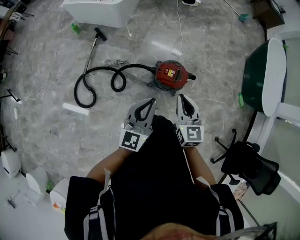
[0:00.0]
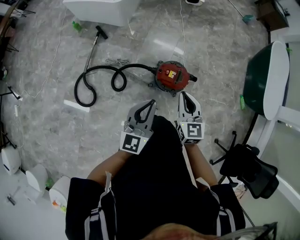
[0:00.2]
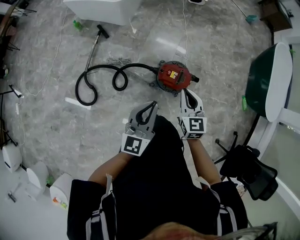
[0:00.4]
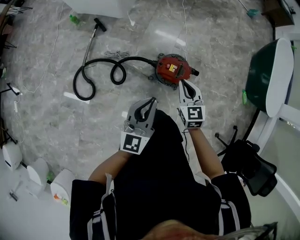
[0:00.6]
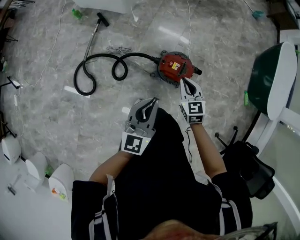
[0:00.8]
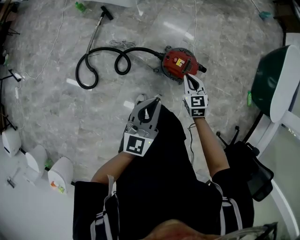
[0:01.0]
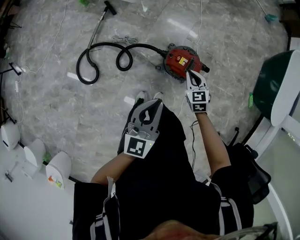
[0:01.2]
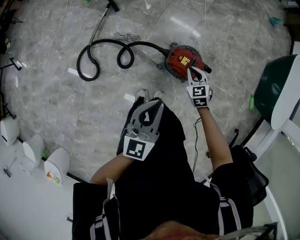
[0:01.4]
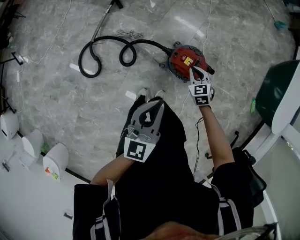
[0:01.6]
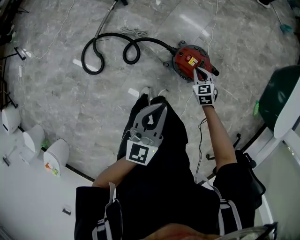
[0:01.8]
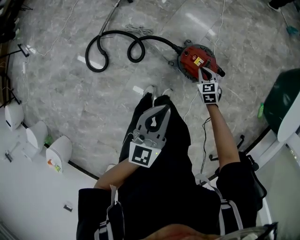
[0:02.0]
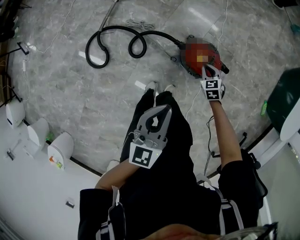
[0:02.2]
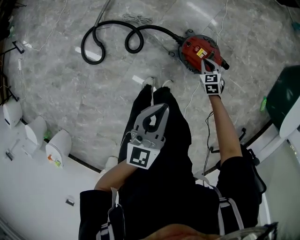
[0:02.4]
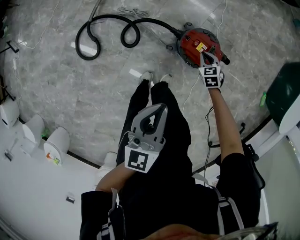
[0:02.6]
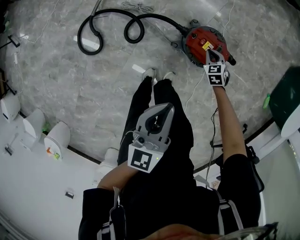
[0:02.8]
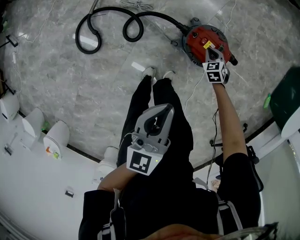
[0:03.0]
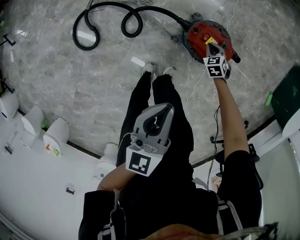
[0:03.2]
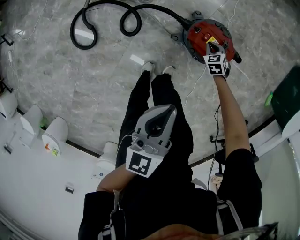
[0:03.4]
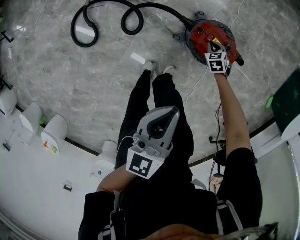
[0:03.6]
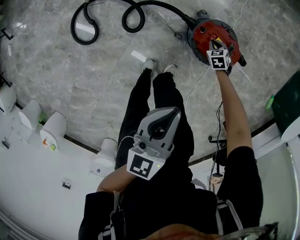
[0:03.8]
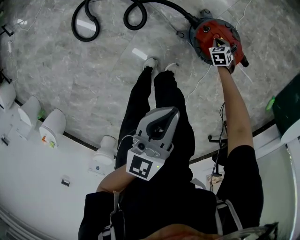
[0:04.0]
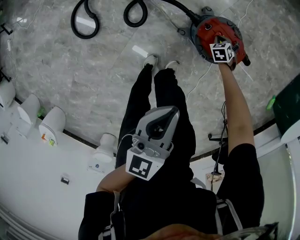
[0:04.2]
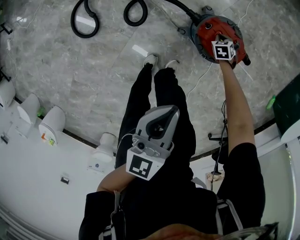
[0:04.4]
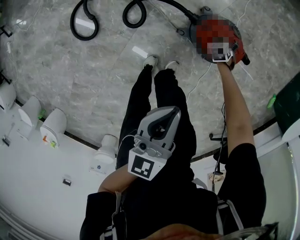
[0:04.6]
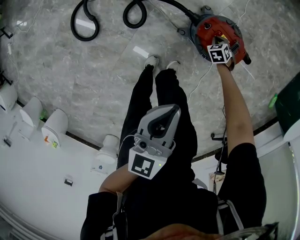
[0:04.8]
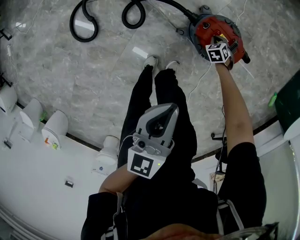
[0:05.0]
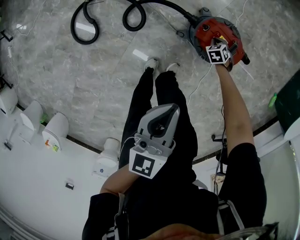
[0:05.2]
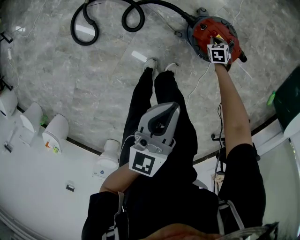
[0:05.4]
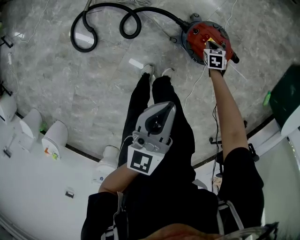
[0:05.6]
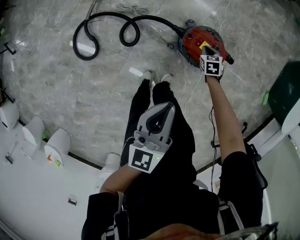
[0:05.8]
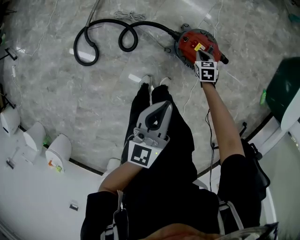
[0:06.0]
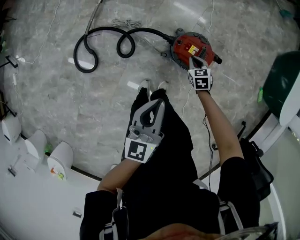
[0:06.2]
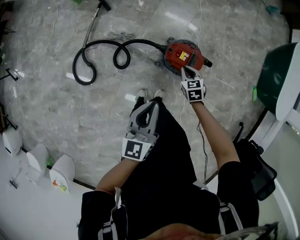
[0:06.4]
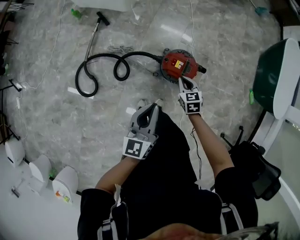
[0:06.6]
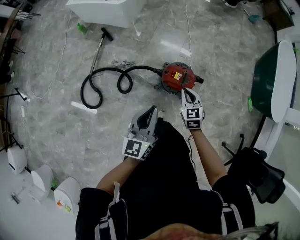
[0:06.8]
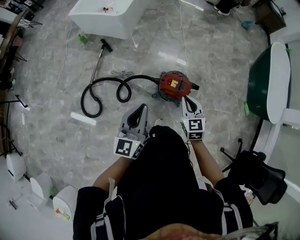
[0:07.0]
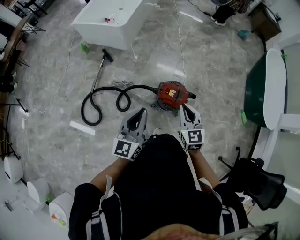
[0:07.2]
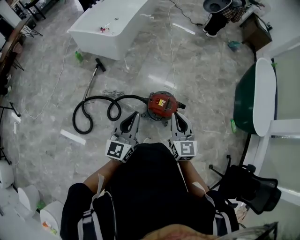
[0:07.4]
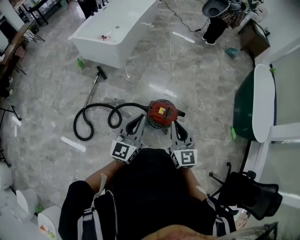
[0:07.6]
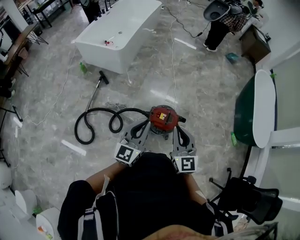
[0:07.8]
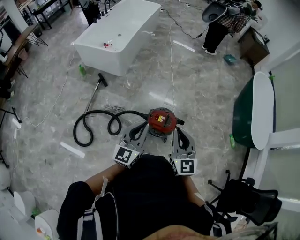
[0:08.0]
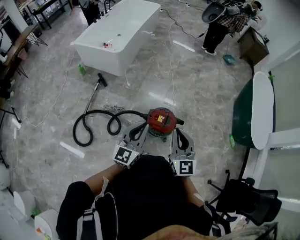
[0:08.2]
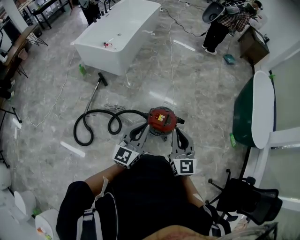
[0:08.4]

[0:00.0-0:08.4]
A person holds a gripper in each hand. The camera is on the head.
0:00.0 to 0:01.4: The right gripper goes about 25 cm downward and forward, and rotates approximately 30 degrees, while the left gripper moves roughly 5 cm.
0:01.4 to 0:02.8: The left gripper moves downward, roughly 10 cm; the right gripper is displaced downward by about 20 cm.
0:02.8 to 0:04.2: The right gripper moves downward, about 20 cm. Meanwhile the left gripper moves downward, some 5 cm.
0:04.2 to 0:05.6: The right gripper shifts roughly 10 cm upward, and rotates roughly 20 degrees.
0:05.6 to 0:07.0: The right gripper is displaced upward by some 50 cm, and tilts its fingers some 40 degrees upward, while the left gripper shifts roughly 20 cm upward.
0:07.0 to 0:08.4: The left gripper moves to the right, some 5 cm; the right gripper moves upward, about 15 cm, and changes its angle by some 30 degrees.

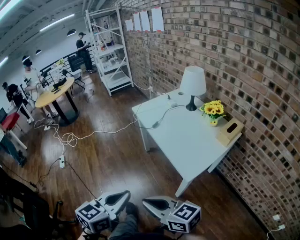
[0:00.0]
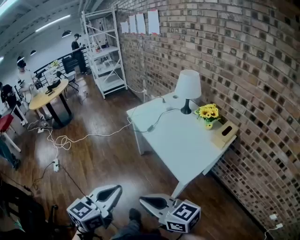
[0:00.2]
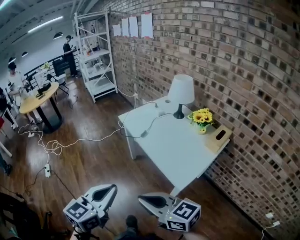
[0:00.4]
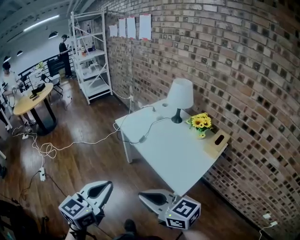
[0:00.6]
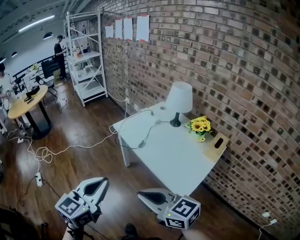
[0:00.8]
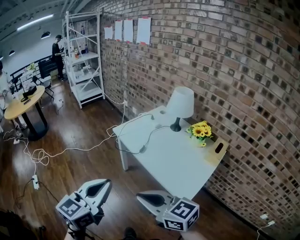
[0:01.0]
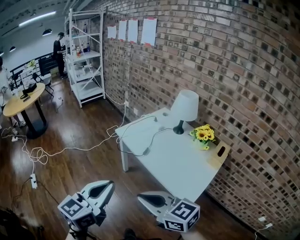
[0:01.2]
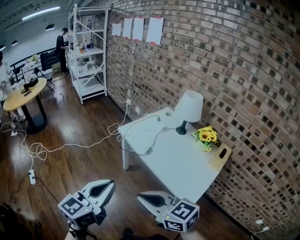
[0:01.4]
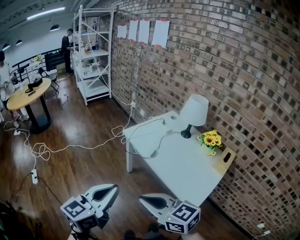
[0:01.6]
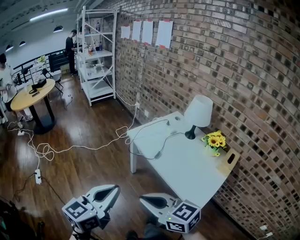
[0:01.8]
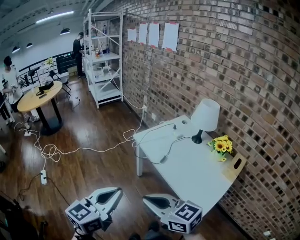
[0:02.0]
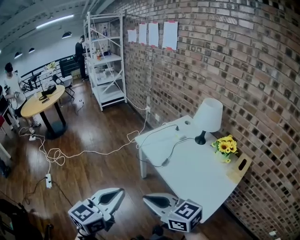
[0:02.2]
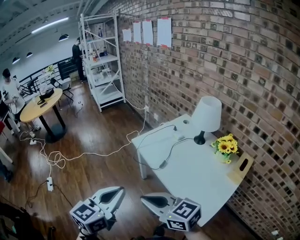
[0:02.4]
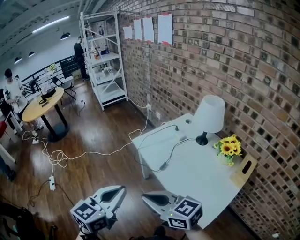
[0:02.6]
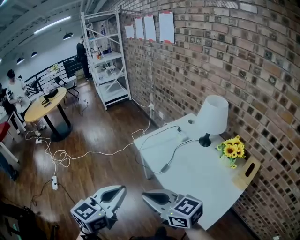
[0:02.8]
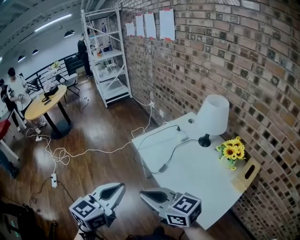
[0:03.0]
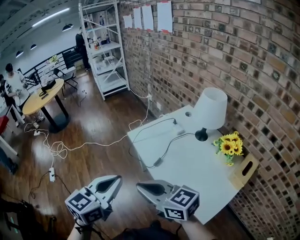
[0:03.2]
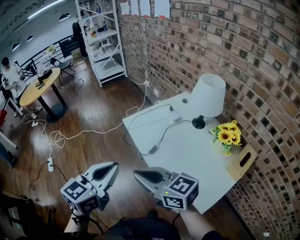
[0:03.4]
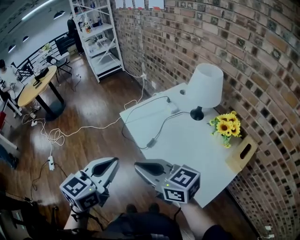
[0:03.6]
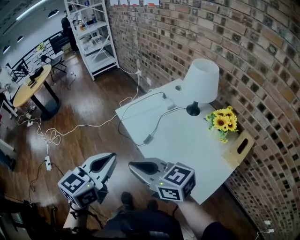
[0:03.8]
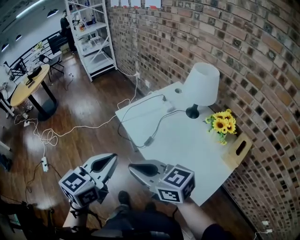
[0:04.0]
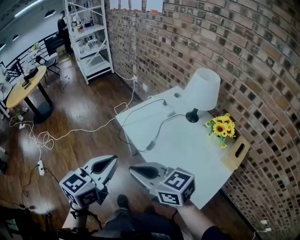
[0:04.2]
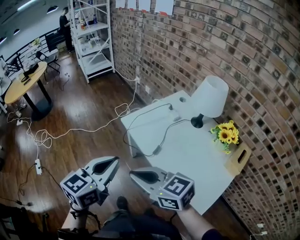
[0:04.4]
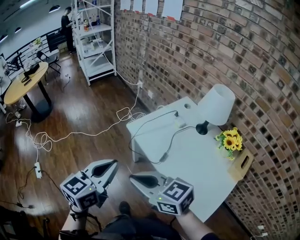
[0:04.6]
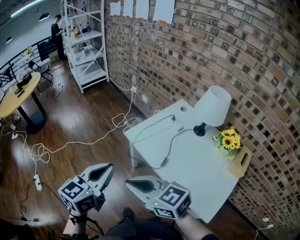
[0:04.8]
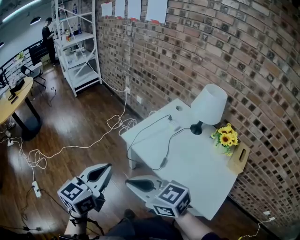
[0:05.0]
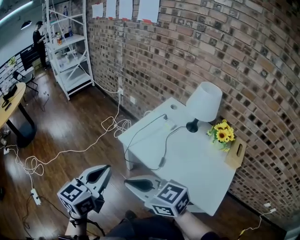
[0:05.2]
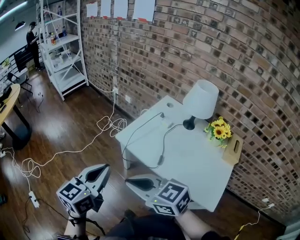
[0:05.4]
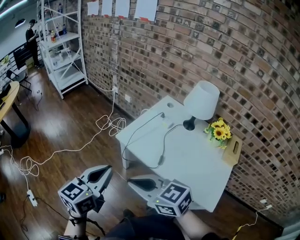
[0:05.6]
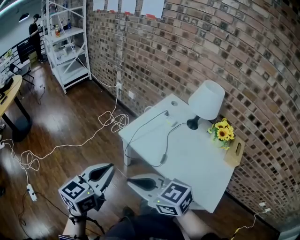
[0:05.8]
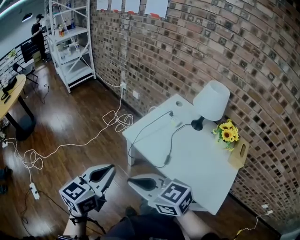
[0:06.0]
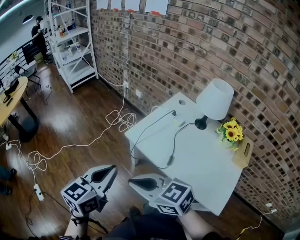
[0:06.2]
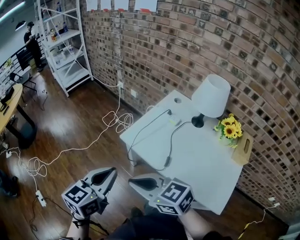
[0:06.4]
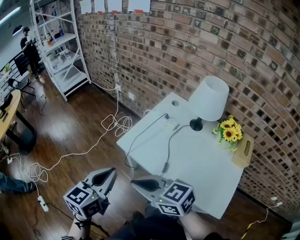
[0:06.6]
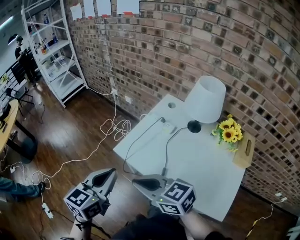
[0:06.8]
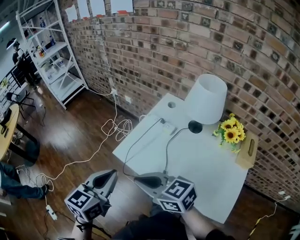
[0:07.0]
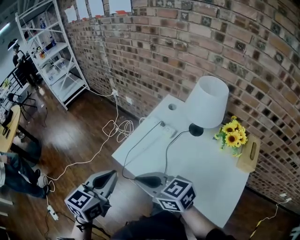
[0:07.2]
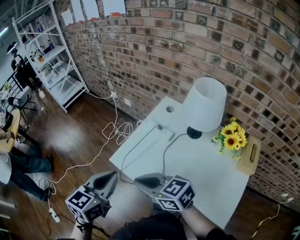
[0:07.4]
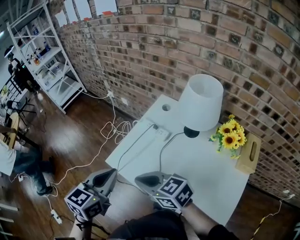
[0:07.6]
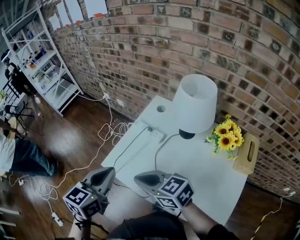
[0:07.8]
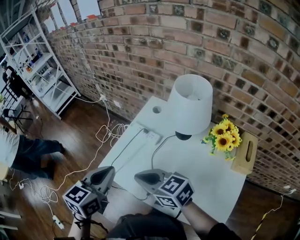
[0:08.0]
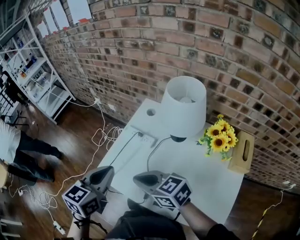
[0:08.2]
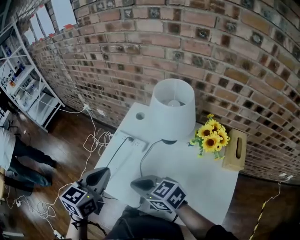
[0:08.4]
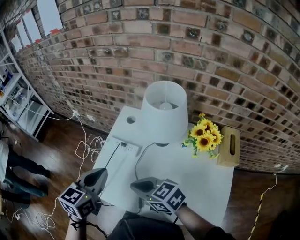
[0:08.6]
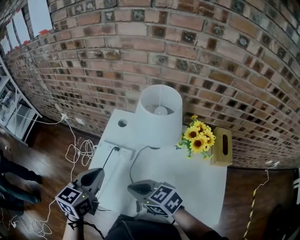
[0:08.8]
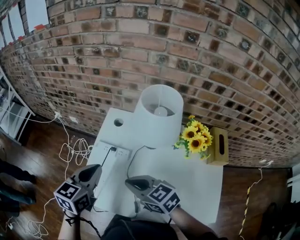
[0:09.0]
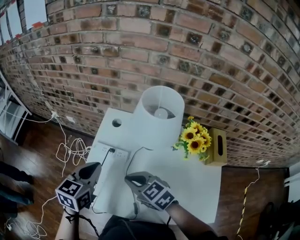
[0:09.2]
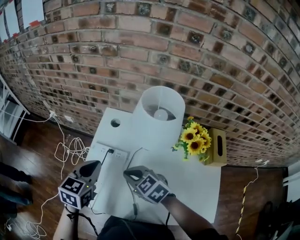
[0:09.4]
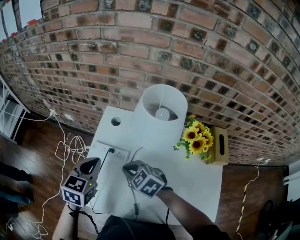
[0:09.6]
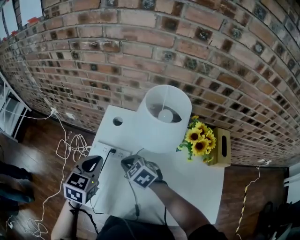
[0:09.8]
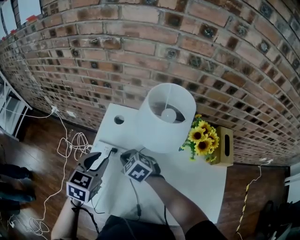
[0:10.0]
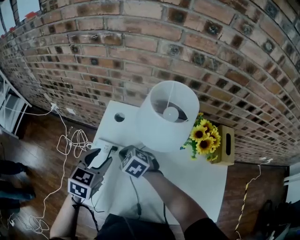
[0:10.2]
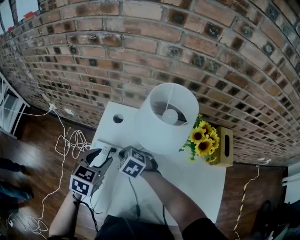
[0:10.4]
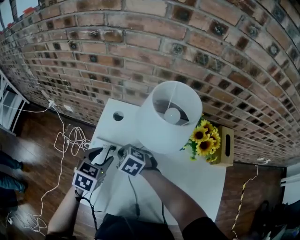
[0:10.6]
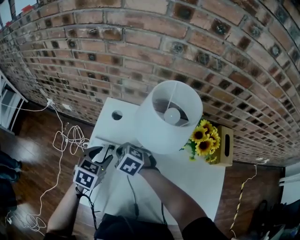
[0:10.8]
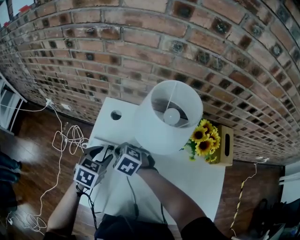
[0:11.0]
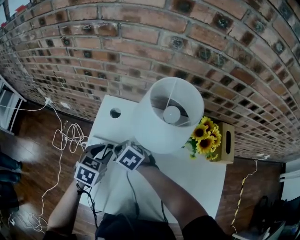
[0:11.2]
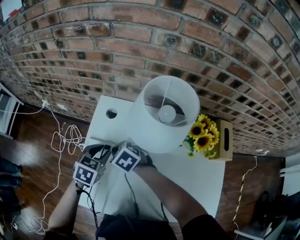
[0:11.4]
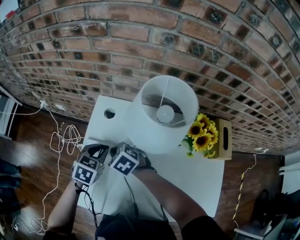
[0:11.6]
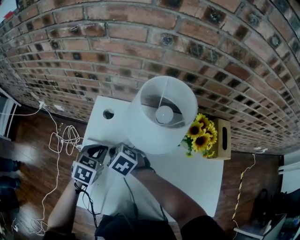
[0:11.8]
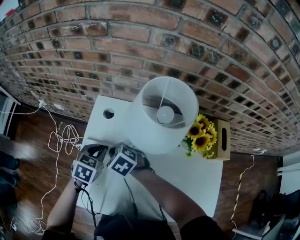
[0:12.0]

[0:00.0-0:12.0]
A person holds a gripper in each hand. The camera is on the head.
0:00.0 to 0:01.6: The grippers both shift forward and to the left by roughly 25 cm.
0:01.6 to 0:03.0: Both grippers move forward and to the right, some 15 cm.
0:03.0 to 0:04.4: The left gripper shifts approximately 5 cm forward; the right gripper changes place by approximately 5 cm.
0:04.4 to 0:06.0: Both grippers move to the left and forward, about 15 cm.
0:06.0 to 0:07.6: The grippers both shift to the right and forward by roughly 20 cm.
0:07.6 to 0:09.0: The left gripper heads forward and to the right, covering some 20 cm, and turns by roughly 20 degrees. The right gripper goes some 15 cm to the right and forward, and turns by approximately 30 degrees.
0:09.0 to 0:10.4: The left gripper travels downward and forward by roughly 10 cm, and opens up, while the right gripper is displaced forward and downward by about 20 cm, and turns by some 40 degrees.
0:10.4 to 0:12.0: The left gripper travels downward by roughly 5 cm, and closes up.

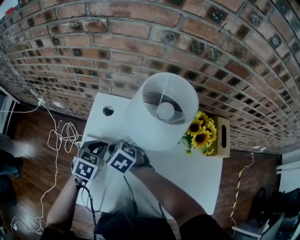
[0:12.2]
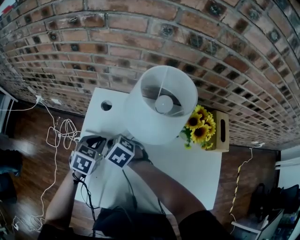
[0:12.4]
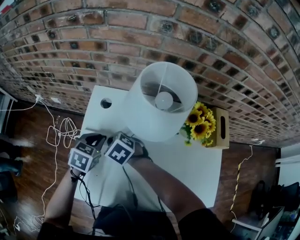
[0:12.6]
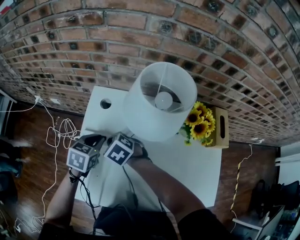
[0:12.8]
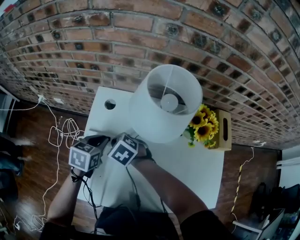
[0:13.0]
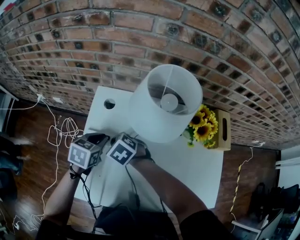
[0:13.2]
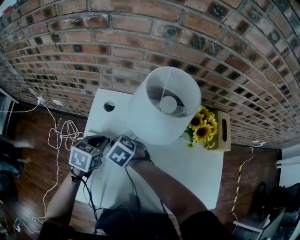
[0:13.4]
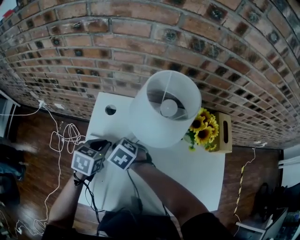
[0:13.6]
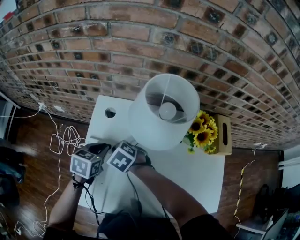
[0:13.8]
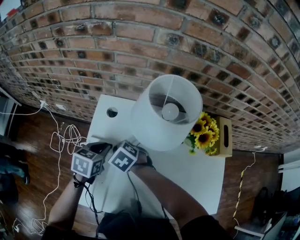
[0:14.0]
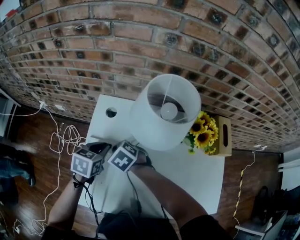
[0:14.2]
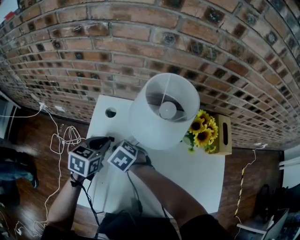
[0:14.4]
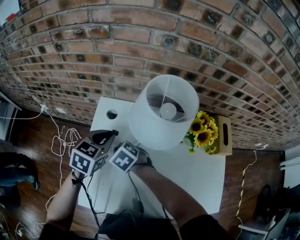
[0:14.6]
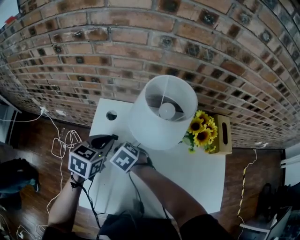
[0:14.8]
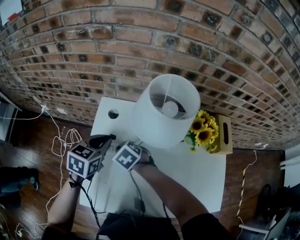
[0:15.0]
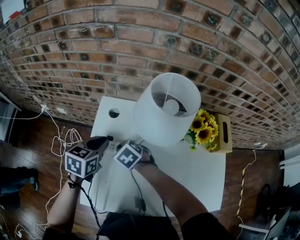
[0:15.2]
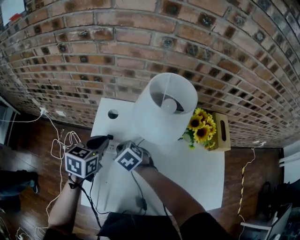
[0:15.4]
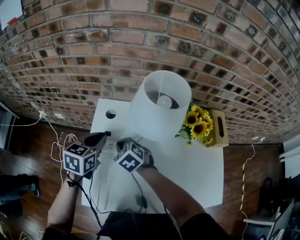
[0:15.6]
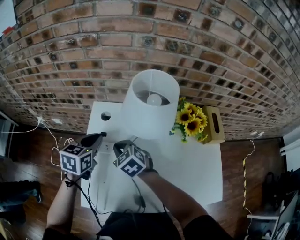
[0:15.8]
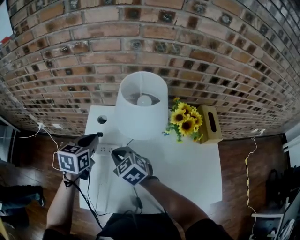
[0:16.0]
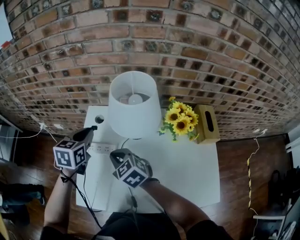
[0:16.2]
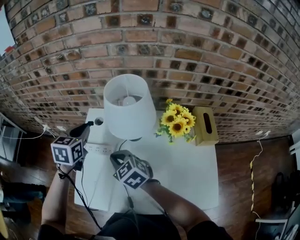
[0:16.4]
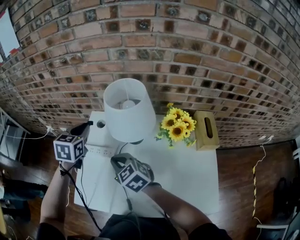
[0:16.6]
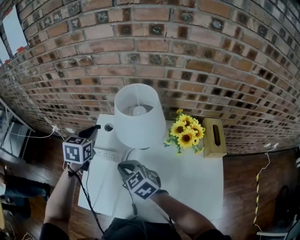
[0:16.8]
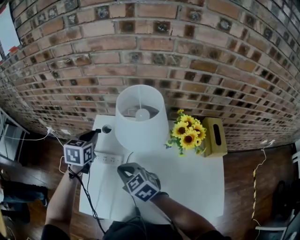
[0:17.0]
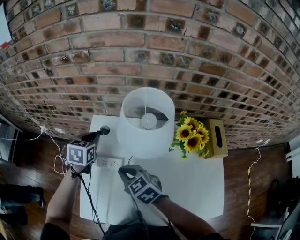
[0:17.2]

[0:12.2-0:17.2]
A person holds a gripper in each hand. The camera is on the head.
0:12.2 to 0:13.8: The grippers move only a little.
0:13.8 to 0:15.6: The left gripper travels upward by approximately 10 cm.
0:15.6 to 0:17.2: The right gripper shifts roughly 10 cm backward and upward, while the left gripper moves forward, approximately 10 cm, and travels upward and back again, about 10 cm each way.
